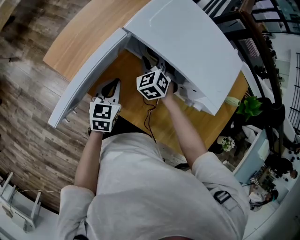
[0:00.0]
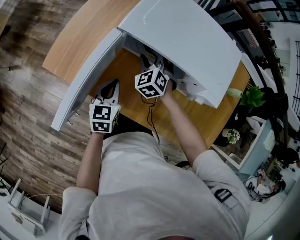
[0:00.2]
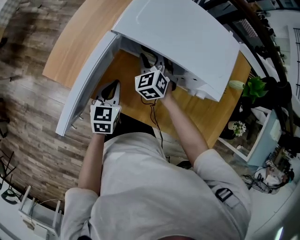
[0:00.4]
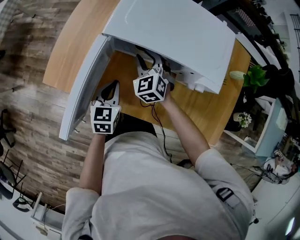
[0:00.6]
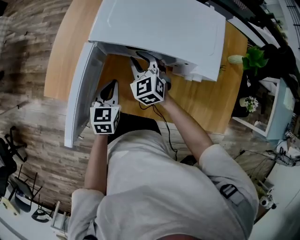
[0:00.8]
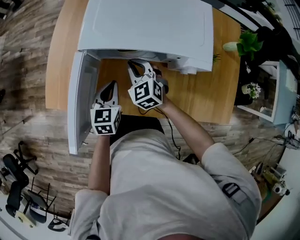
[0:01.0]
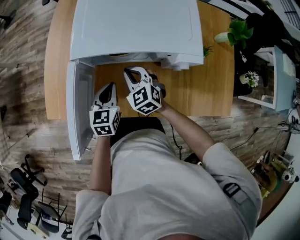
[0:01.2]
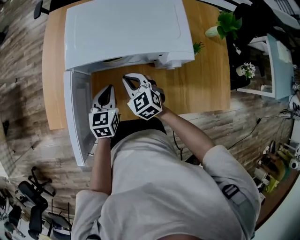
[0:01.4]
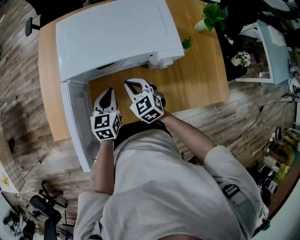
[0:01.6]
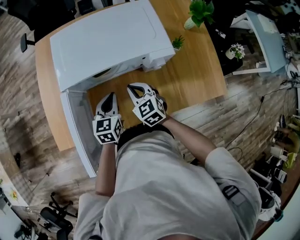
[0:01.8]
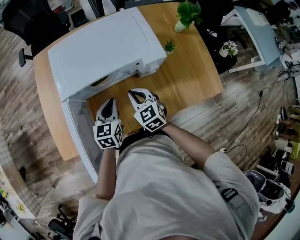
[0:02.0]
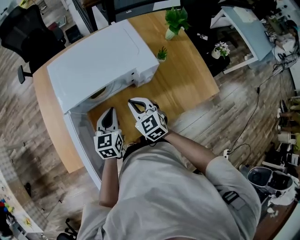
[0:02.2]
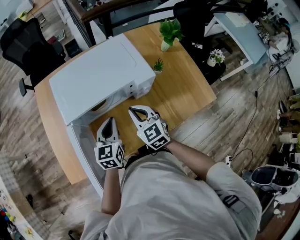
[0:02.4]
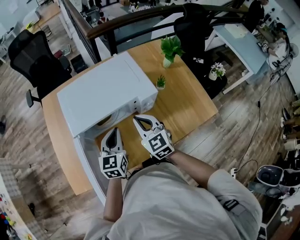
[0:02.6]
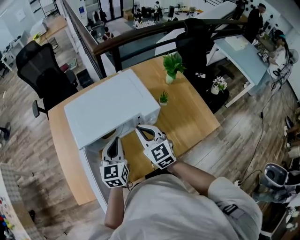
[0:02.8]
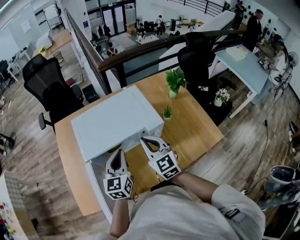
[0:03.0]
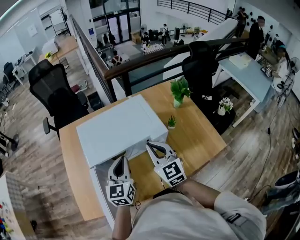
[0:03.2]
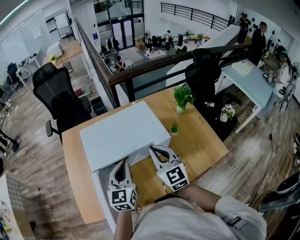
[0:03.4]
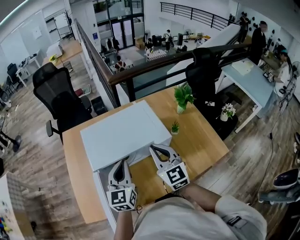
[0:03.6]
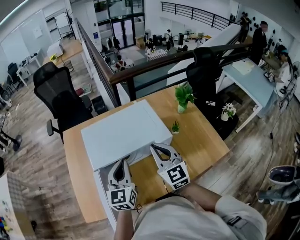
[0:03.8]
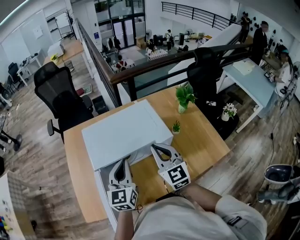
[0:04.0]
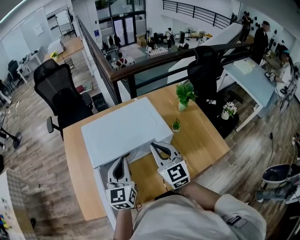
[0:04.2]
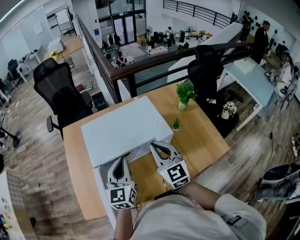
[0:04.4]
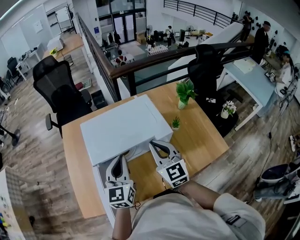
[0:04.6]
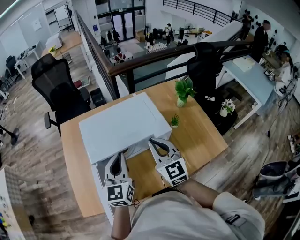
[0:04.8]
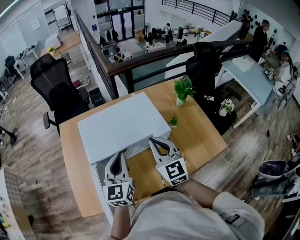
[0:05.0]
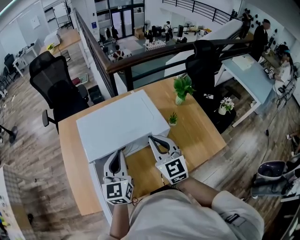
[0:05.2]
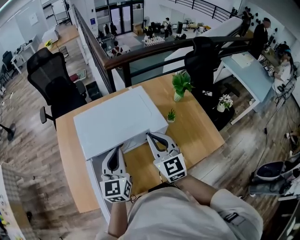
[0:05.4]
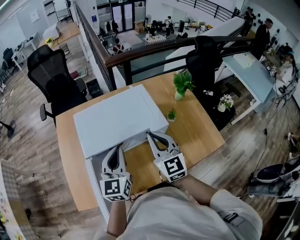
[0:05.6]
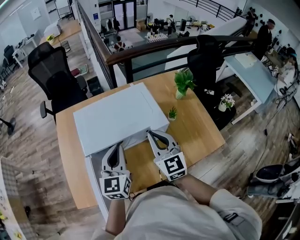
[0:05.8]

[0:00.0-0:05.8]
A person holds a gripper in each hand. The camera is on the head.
0:00.0 to 0:01.4: The right gripper heads backward and to the right, covering some 10 cm, rotates roughly 30 degrees, and closes up. Meanwhile the left gripper heads to the right, covering approximately 5 cm, and rotates about 30 degrees.
0:01.4 to 0:02.8: The two grippers go roughly 15 cm upward and to the right. The right gripper changes its angle by roughly 30 degrees. Meanwhile the left gripper turns by some 20 degrees.
0:02.8 to 0:04.4: Both grippers move upward, roughly 10 cm.
0:04.4 to 0:05.8: The grippers move only a little.

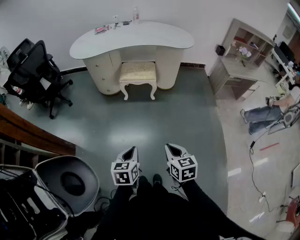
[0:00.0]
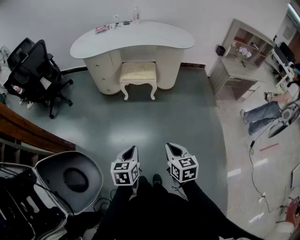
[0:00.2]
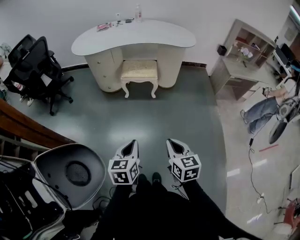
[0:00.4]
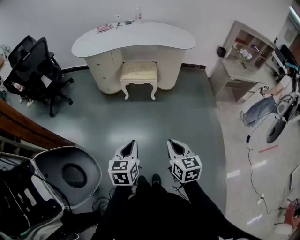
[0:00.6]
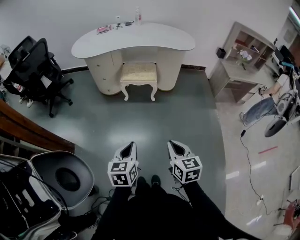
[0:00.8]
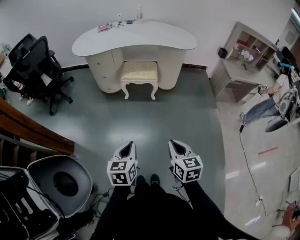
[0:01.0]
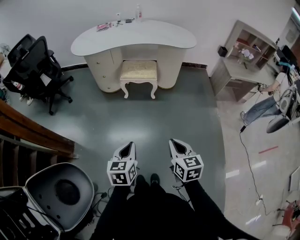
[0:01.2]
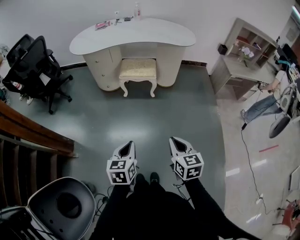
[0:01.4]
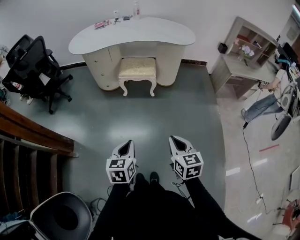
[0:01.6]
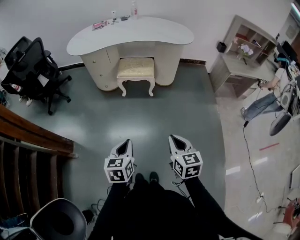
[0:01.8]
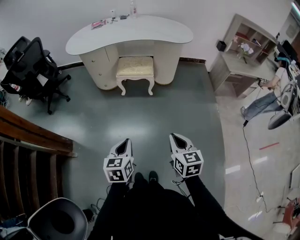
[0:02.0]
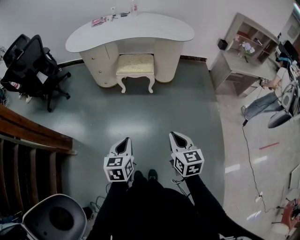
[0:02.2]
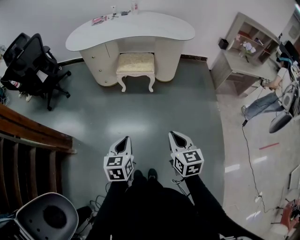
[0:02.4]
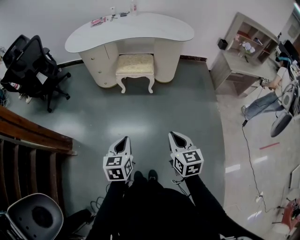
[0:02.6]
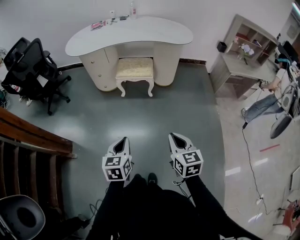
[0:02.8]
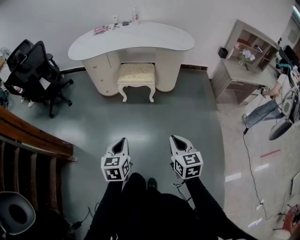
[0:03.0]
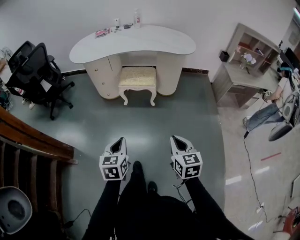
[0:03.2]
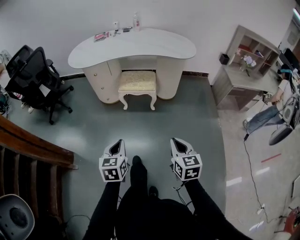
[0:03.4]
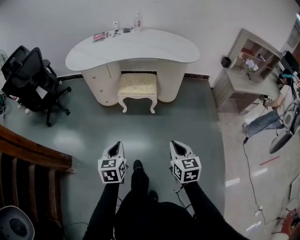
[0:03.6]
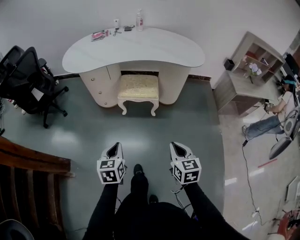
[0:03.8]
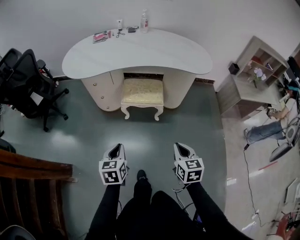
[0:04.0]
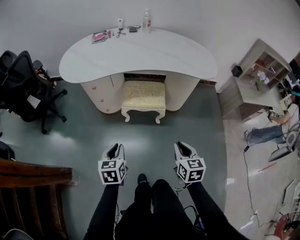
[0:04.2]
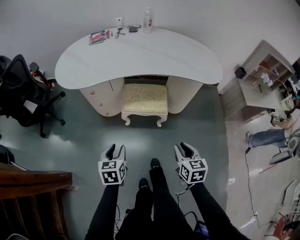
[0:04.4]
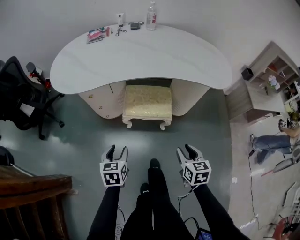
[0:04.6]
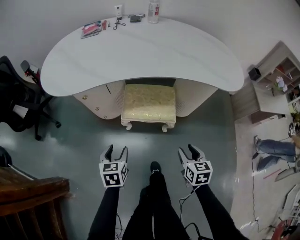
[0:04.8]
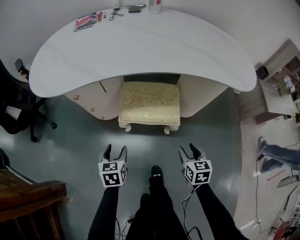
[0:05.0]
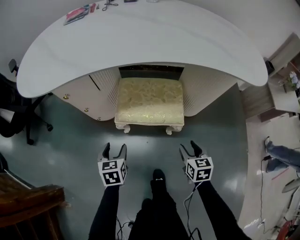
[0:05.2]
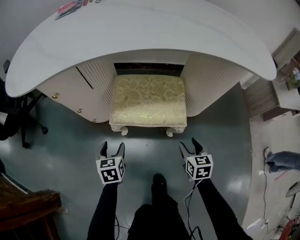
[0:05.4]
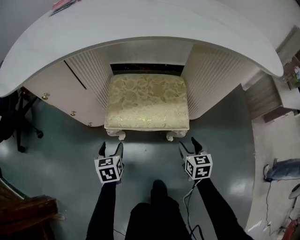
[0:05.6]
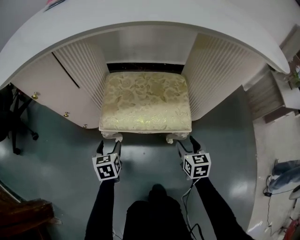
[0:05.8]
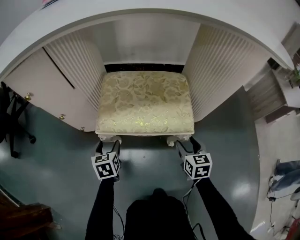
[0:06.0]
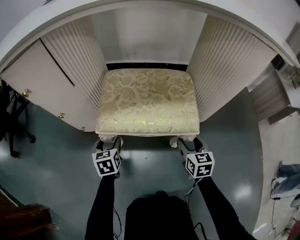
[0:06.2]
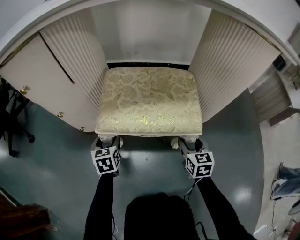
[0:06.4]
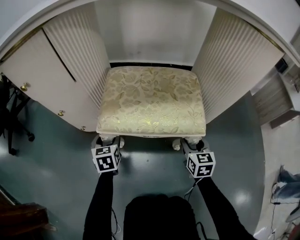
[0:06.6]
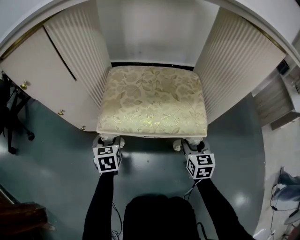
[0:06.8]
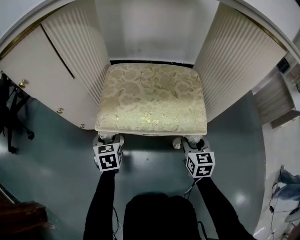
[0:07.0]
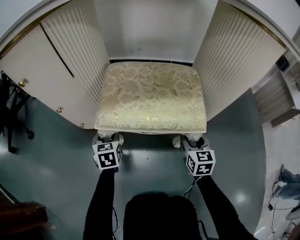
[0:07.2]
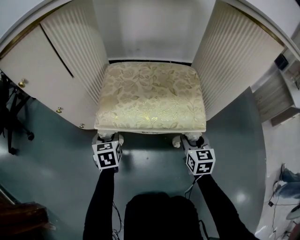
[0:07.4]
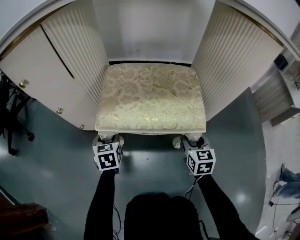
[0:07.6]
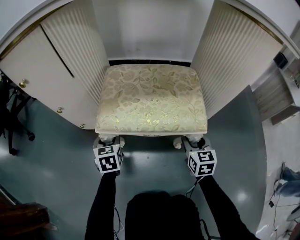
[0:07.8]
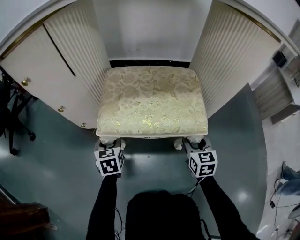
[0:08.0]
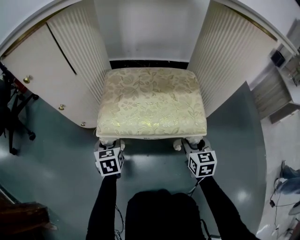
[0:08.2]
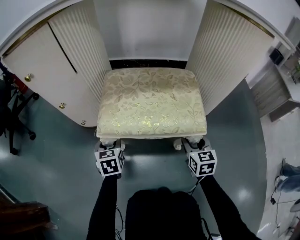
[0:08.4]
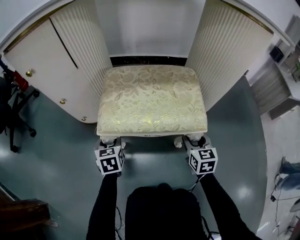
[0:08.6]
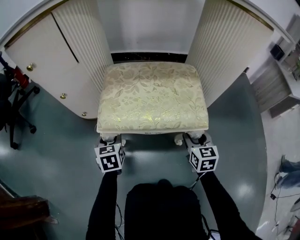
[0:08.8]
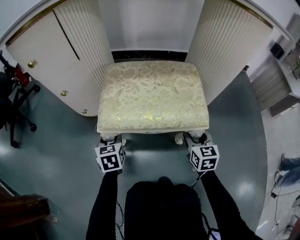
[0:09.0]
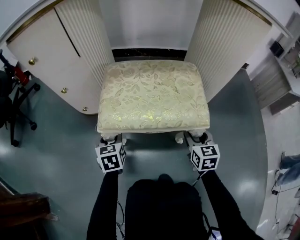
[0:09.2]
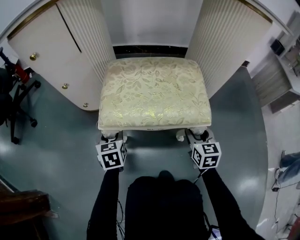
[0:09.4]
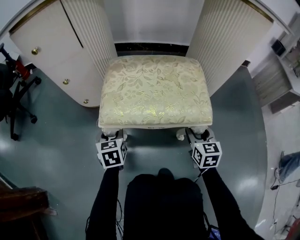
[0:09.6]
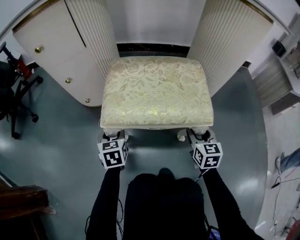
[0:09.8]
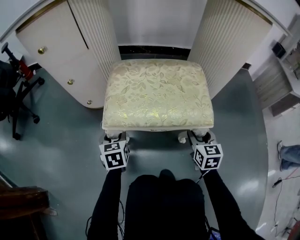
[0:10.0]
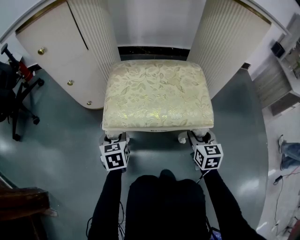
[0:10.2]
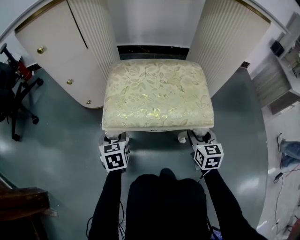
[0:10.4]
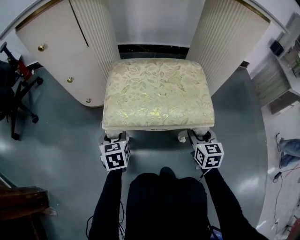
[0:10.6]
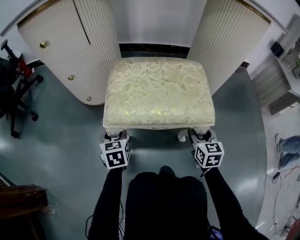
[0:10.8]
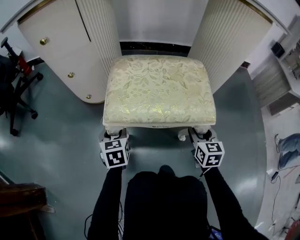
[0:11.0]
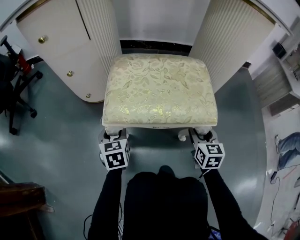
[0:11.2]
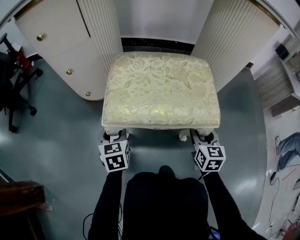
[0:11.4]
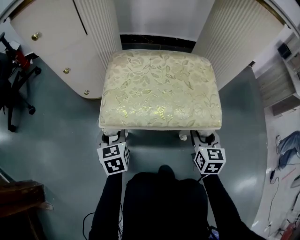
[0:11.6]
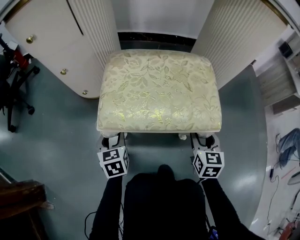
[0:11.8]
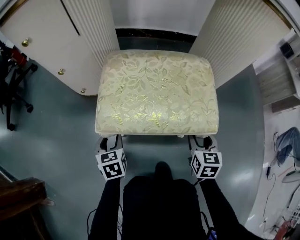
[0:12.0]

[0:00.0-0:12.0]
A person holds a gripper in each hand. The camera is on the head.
0:00.0 to 0:01.6: The right gripper moves approximately 5 cm.
0:01.6 to 0:03.0: The right gripper changes place by roughly 5 cm.
0:03.0 to 0:04.4: Both grippers move forward, about 35 cm. The left gripper opens. The right gripper opens up.
0:04.4 to 0:06.0: Both grippers move downward and forward, roughly 50 cm. The right gripper opens its fingers. Meanwhile the left gripper opens up.
0:06.0 to 0:07.6: The grippers stay close to where they were, moving slightly.
0:07.6 to 0:09.0: Both grippers stay about where they are.
0:09.0 to 0:10.4: Neither gripper changes place.
0:10.4 to 0:12.0: There are only small adjustments of the grippers.

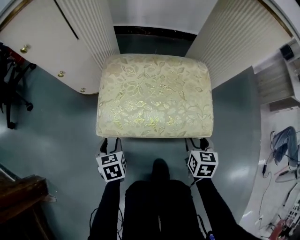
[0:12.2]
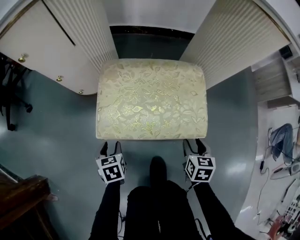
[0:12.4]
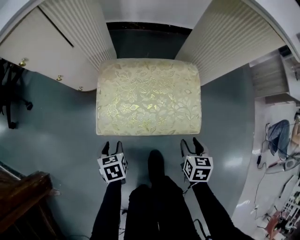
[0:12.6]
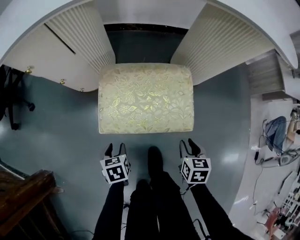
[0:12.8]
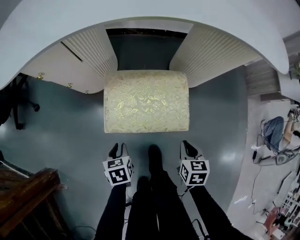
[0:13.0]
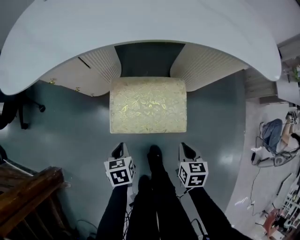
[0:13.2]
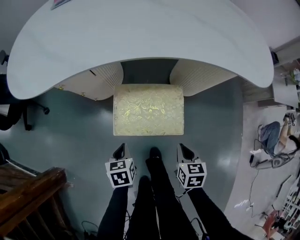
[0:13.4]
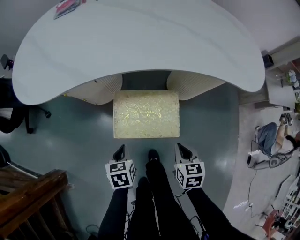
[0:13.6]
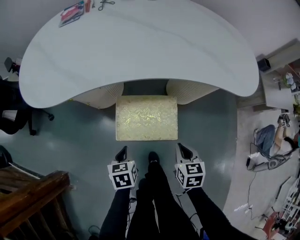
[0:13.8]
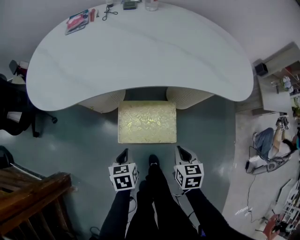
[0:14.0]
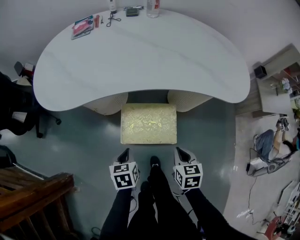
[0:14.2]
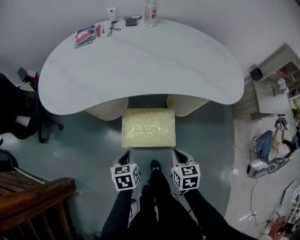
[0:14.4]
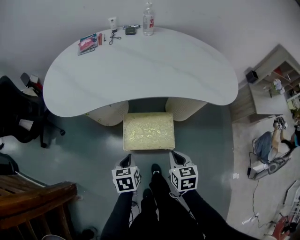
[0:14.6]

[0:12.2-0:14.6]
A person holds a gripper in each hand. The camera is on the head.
0:12.2 to 0:13.4: Both grippers move upward, some 25 cm. The right gripper closes up. The left gripper closes.
0:13.4 to 0:14.6: The two grippers go roughly 20 cm upward.

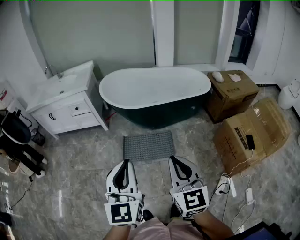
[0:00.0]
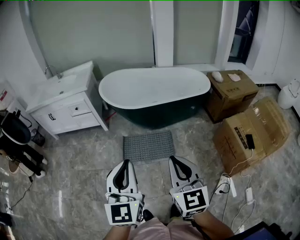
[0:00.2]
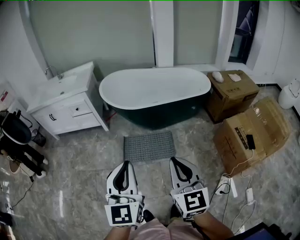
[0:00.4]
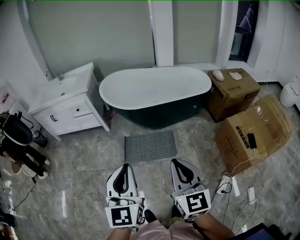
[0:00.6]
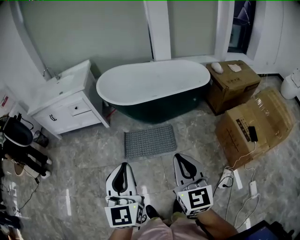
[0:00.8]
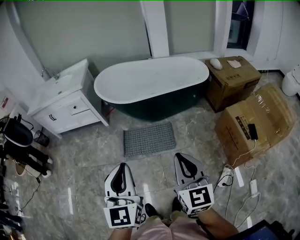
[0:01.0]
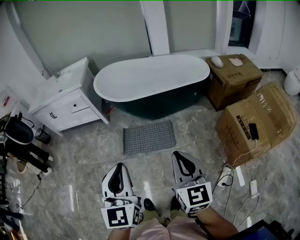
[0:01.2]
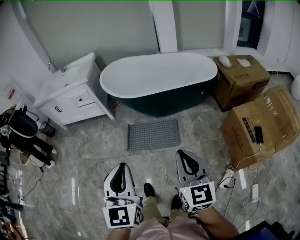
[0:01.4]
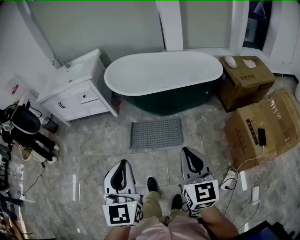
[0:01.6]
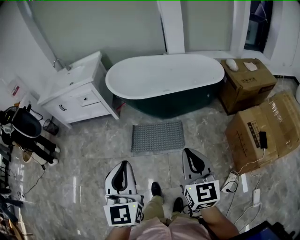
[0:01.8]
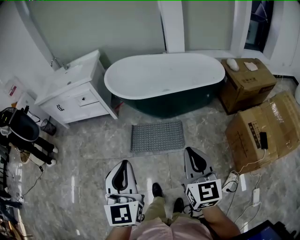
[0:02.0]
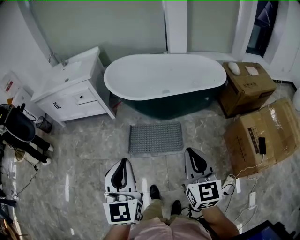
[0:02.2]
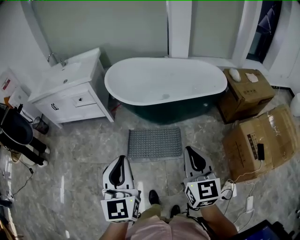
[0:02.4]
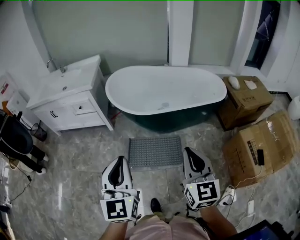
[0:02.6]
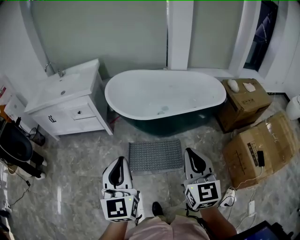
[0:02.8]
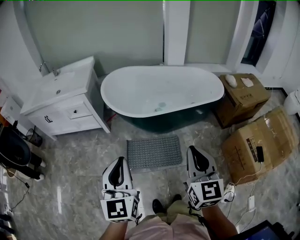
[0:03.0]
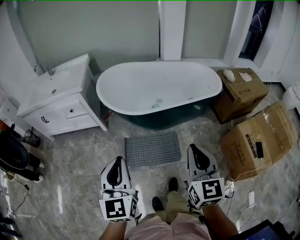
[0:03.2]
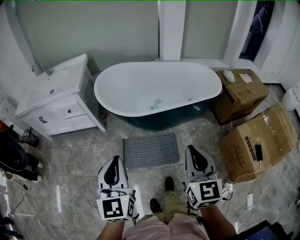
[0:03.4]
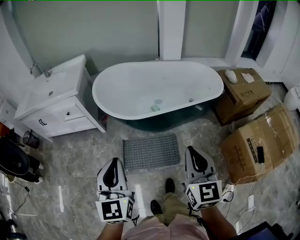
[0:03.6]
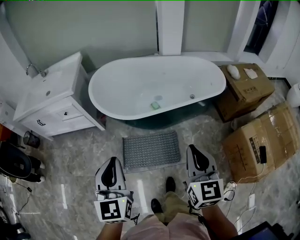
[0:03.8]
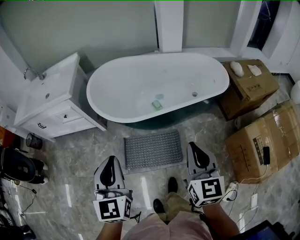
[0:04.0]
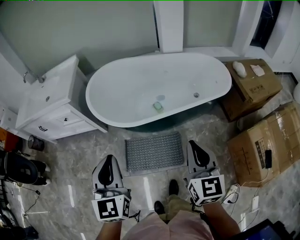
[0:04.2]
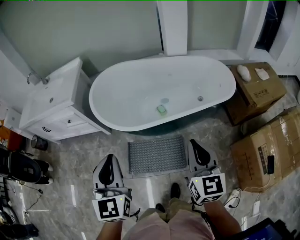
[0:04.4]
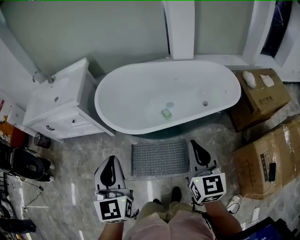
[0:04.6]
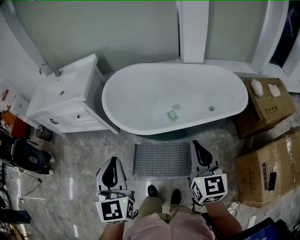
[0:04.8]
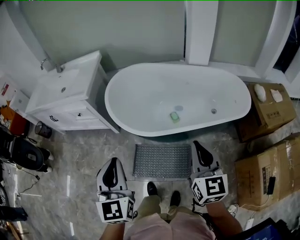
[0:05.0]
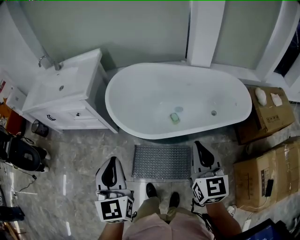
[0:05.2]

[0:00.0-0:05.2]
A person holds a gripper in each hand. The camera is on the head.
0:00.0 to 0:01.8: The left gripper moves to the right, about 5 cm. The right gripper moves to the right, some 10 cm.
0:01.8 to 0:03.4: The left gripper travels forward and to the left by roughly 25 cm; the right gripper travels forward by about 20 cm.
0:03.4 to 0:05.2: The grippers both shift forward by roughly 25 cm.
